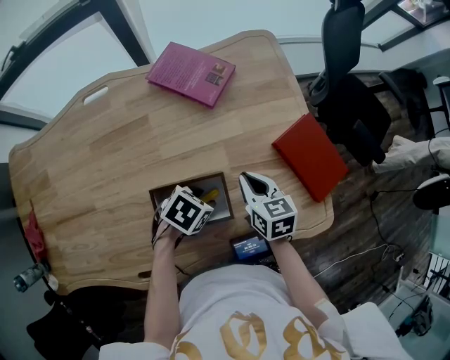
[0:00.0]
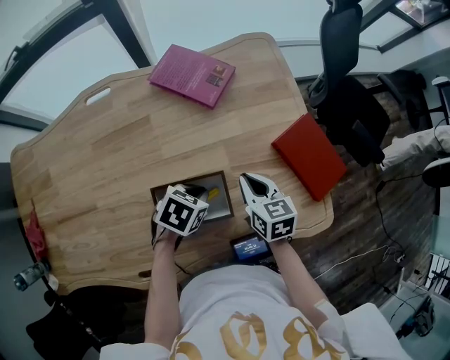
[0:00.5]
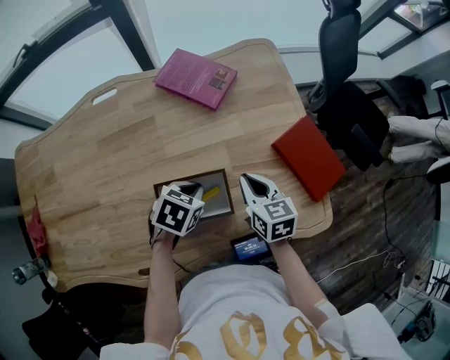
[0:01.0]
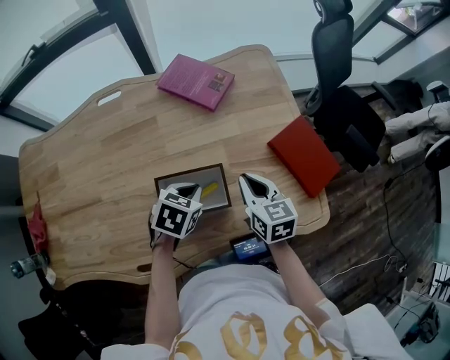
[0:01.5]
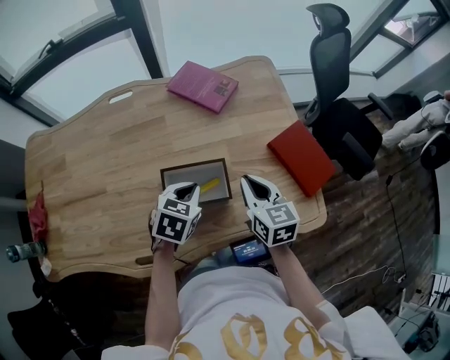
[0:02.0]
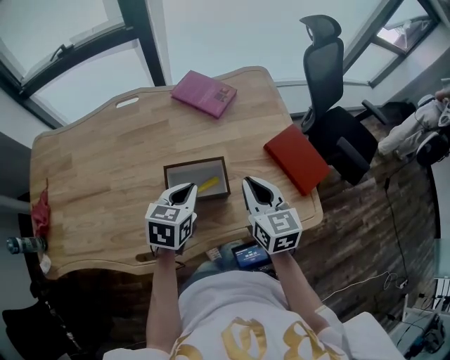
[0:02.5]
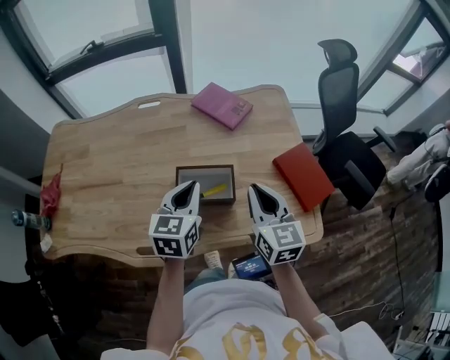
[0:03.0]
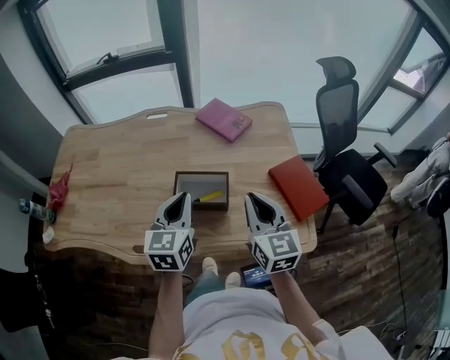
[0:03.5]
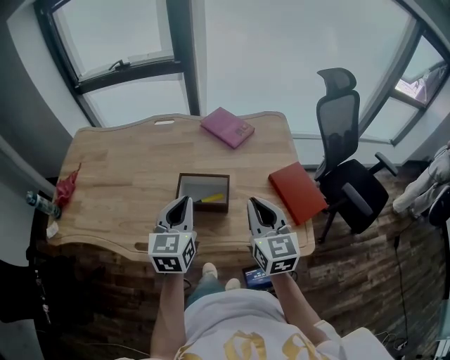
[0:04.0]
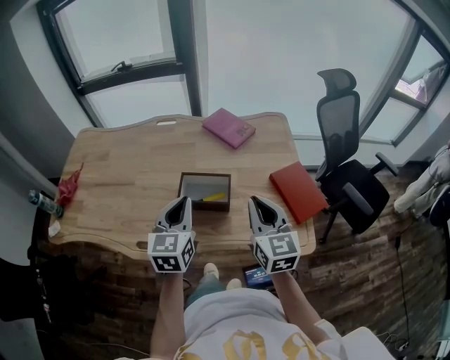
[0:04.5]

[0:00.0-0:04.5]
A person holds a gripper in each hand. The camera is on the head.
0:00.0 to 0:02.0: Both grippers move upward, about 10 cm. The left gripper turns by approximately 30 degrees, and closes up.
0:02.0 to 0:04.5: The two grippers go approximately 20 cm upward and backward. The left gripper tips its fingers upward by some 30 degrees, while the right gripper swivels roughly 20 degrees.

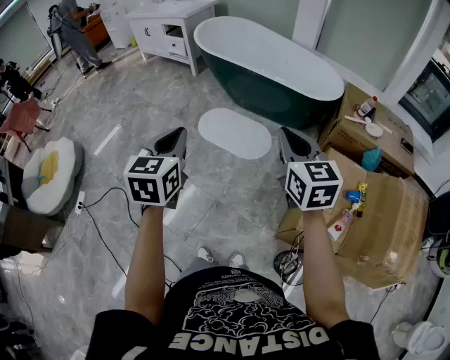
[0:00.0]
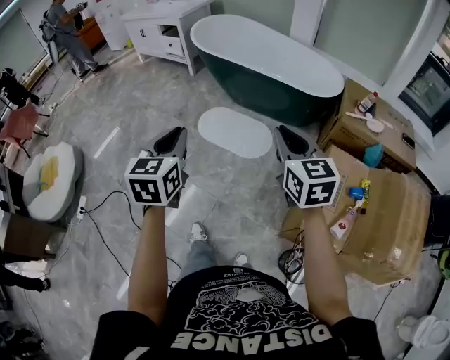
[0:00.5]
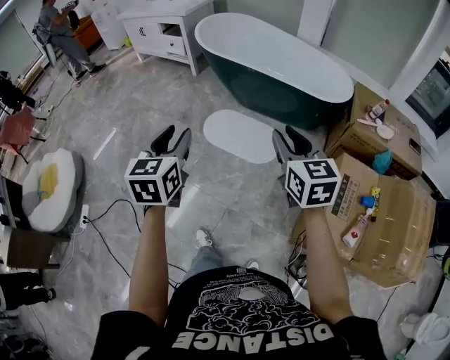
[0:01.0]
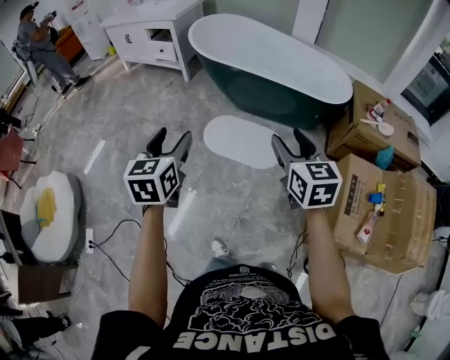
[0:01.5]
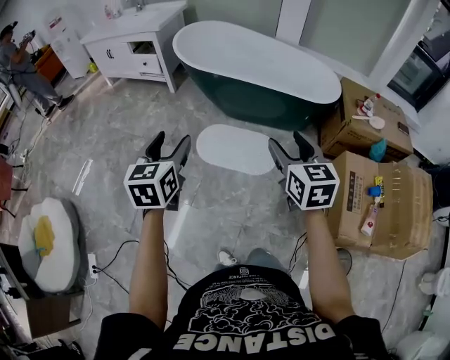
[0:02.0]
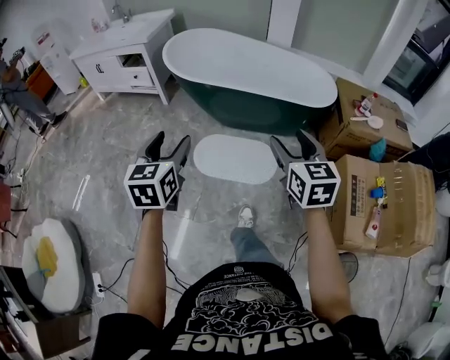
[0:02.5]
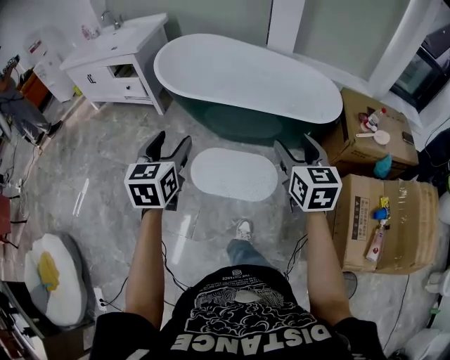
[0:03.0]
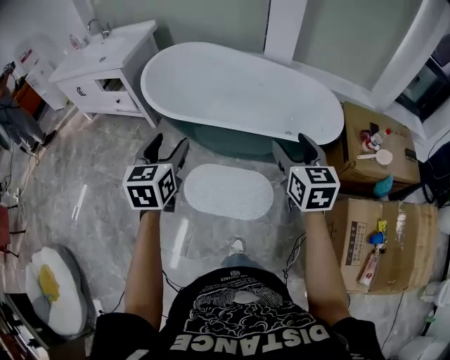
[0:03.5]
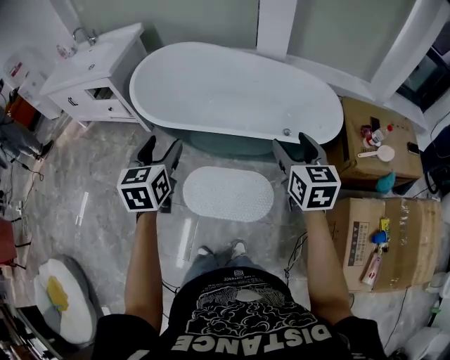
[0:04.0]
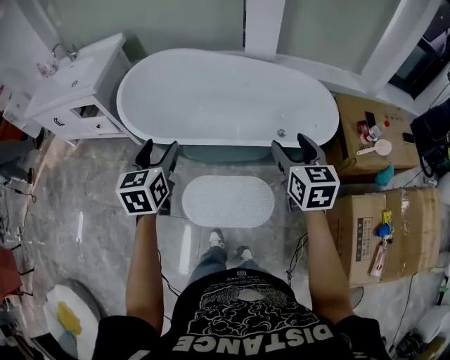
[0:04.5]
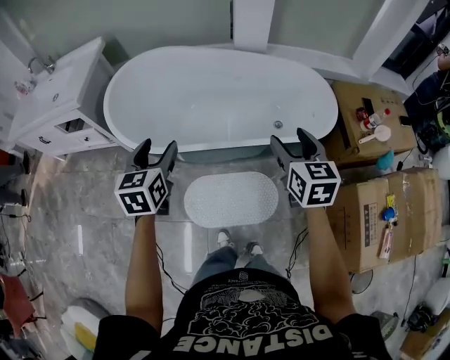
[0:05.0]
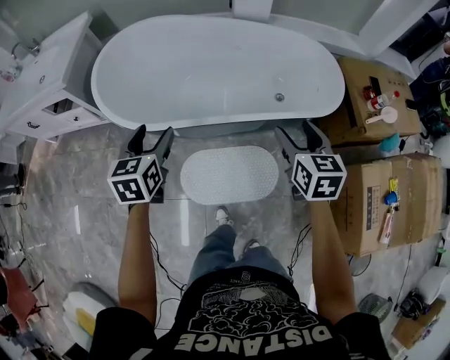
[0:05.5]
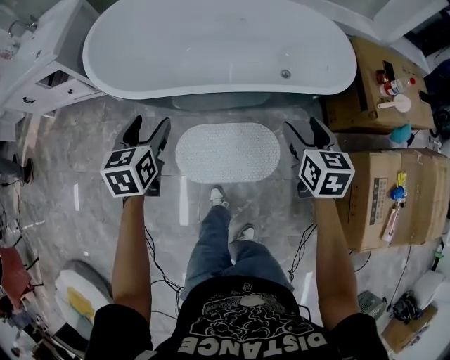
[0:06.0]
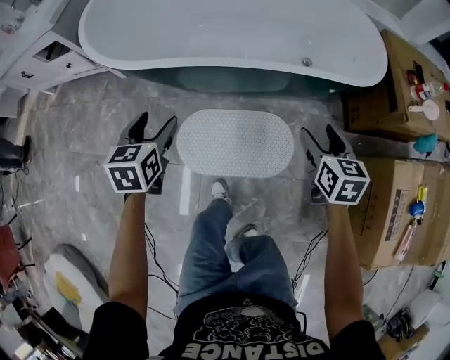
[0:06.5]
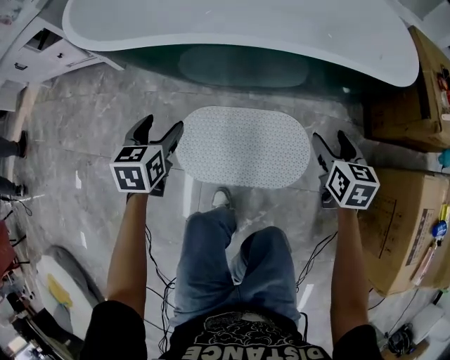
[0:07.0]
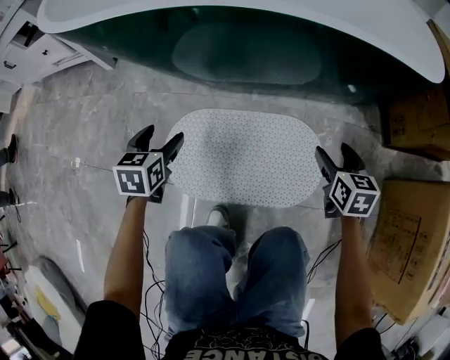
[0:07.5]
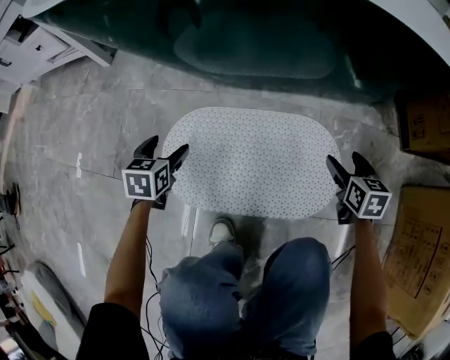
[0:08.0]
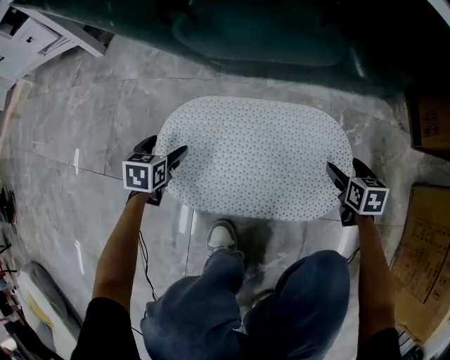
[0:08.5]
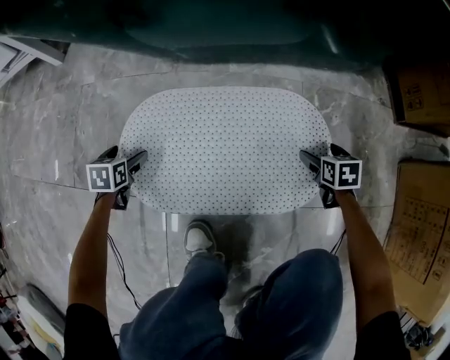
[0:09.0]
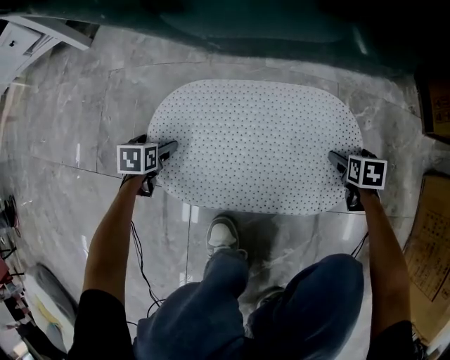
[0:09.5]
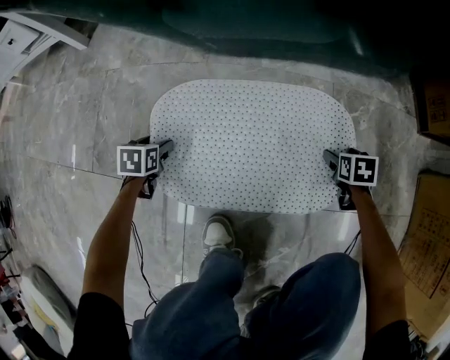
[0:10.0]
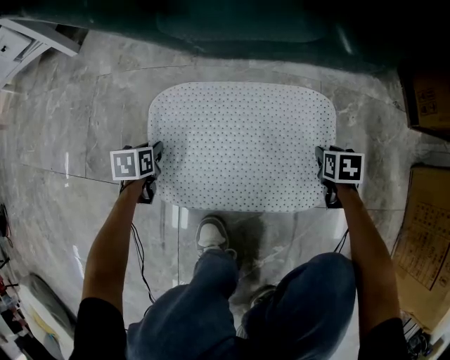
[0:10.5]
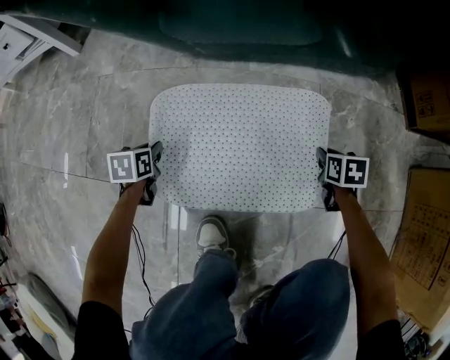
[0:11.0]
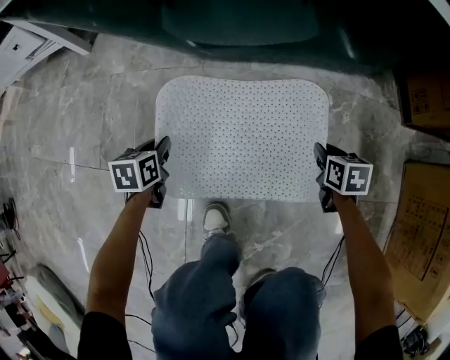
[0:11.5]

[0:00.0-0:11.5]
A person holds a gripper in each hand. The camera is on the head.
0:00.0 to 0:02.0: Both grippers move forward and to the left, approximately 30 cm. The right gripper opens. Meanwhile the left gripper opens its fingers.
0:02.0 to 0:04.0: The two grippers travel together, forward, some 40 cm.
0:04.0 to 0:06.0: The left gripper travels downward and forward by about 20 cm. The right gripper is displaced downward by about 20 cm.
0:06.0 to 0:07.5: Both grippers travel together downward, about 50 cm.
0:07.5 to 0:09.5: The grippers both shift downward by about 30 cm. The left gripper turns by roughly 20 degrees. The right gripper rotates roughly 30 degrees.
0:09.5 to 0:11.5: The left gripper shifts about 15 cm upward and to the right, and closes. Meanwhile the right gripper shifts approximately 15 cm upward and to the left, and closes up.

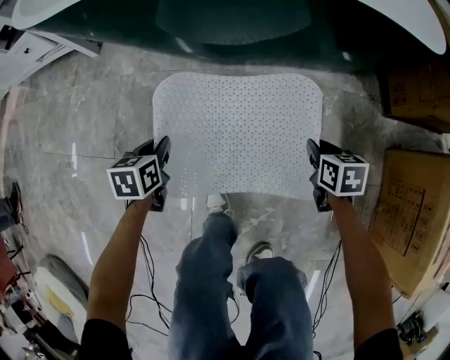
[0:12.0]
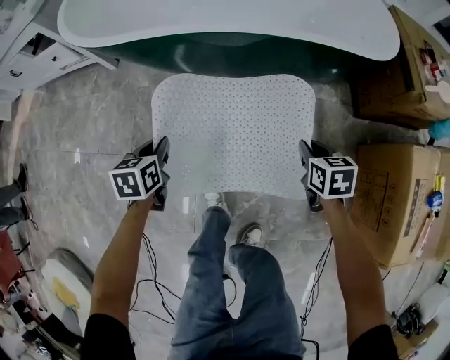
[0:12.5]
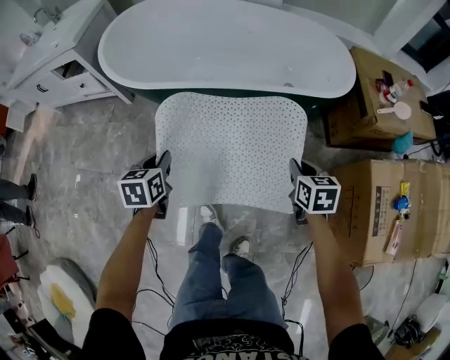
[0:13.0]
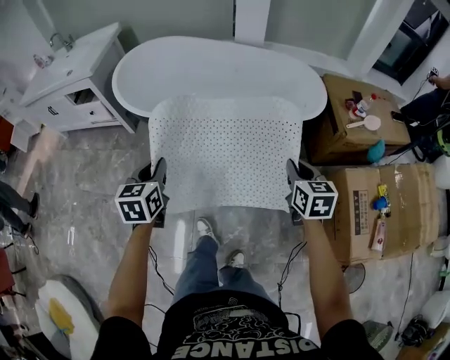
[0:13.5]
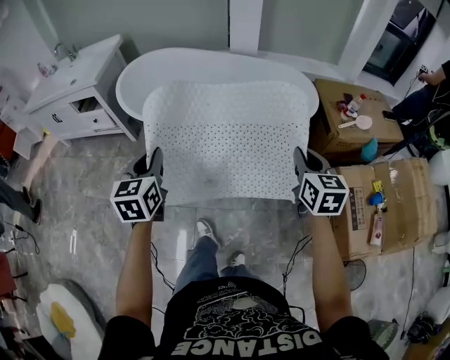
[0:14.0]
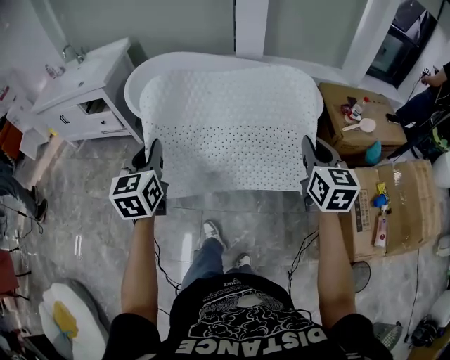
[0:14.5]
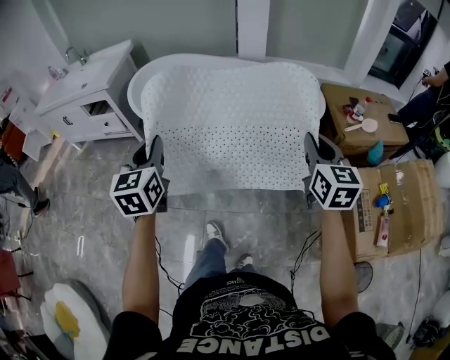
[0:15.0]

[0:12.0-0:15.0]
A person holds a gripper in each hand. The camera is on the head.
0:12.0 to 0:13.5: Both grippers move upward, roughly 60 cm. The left gripper turns by some 30 degrees, while the right gripper turns by about 30 degrees.
0:13.5 to 0:15.0: The two grippers go some 15 cm upward.

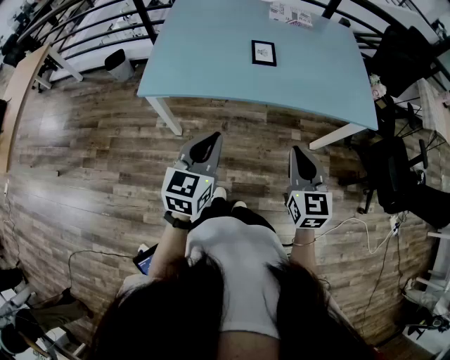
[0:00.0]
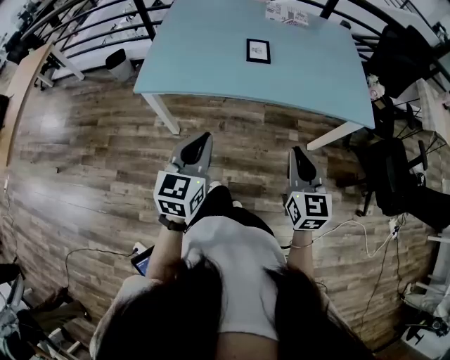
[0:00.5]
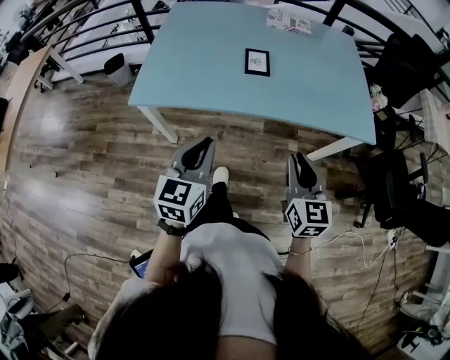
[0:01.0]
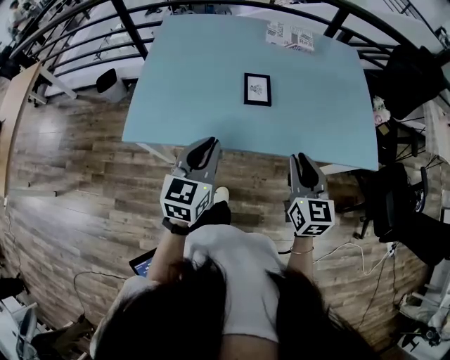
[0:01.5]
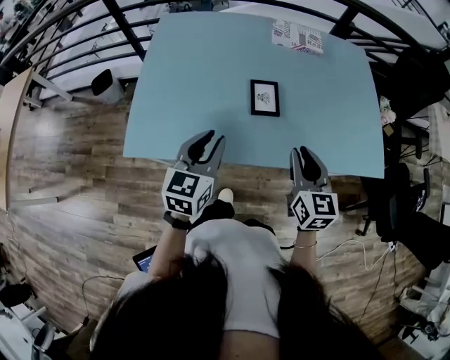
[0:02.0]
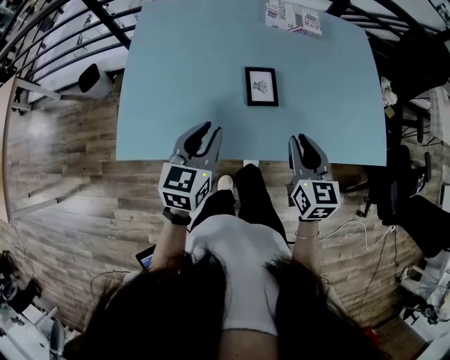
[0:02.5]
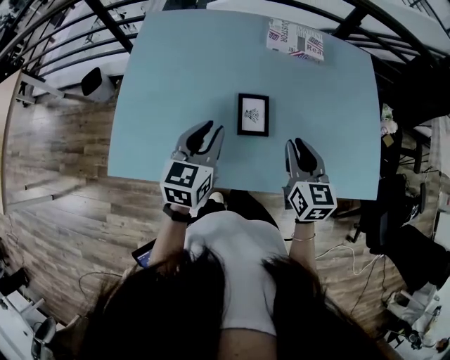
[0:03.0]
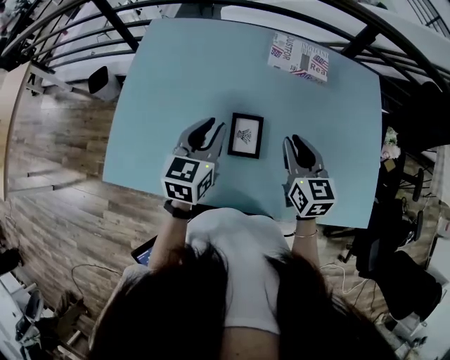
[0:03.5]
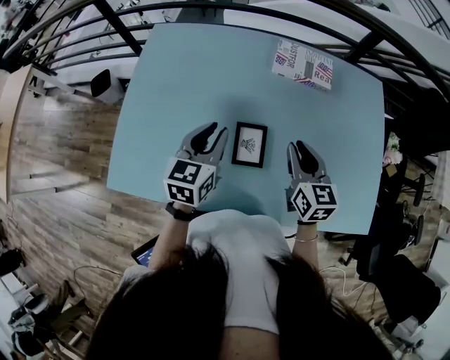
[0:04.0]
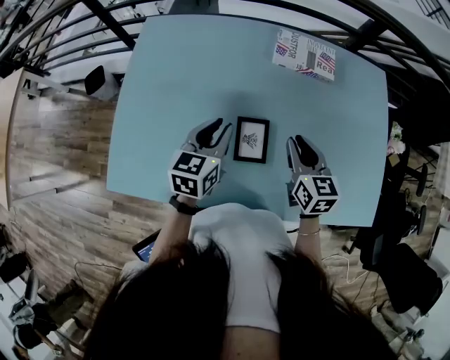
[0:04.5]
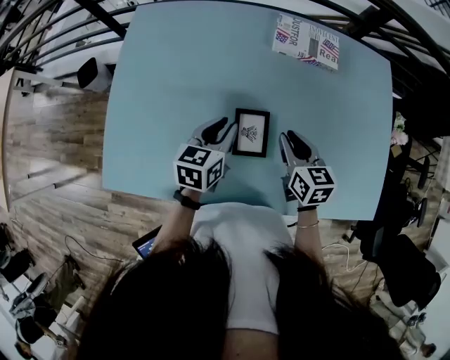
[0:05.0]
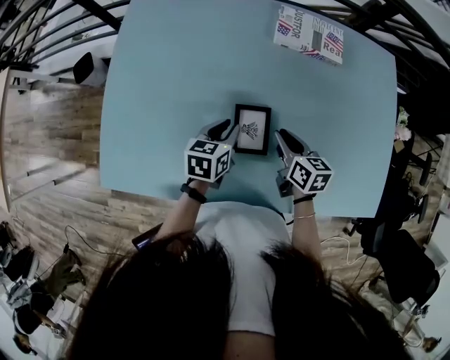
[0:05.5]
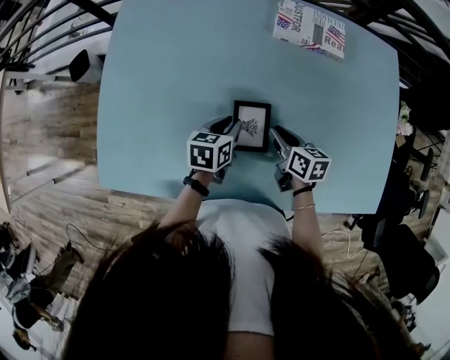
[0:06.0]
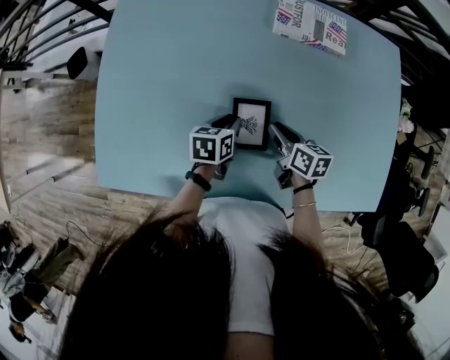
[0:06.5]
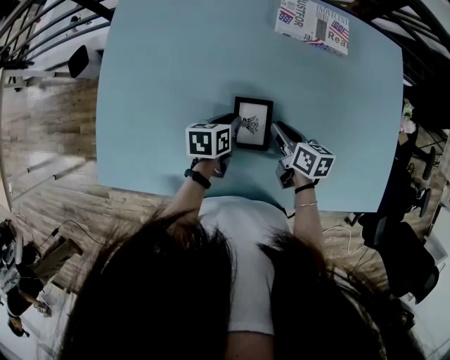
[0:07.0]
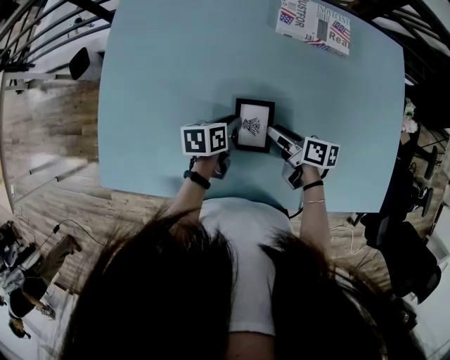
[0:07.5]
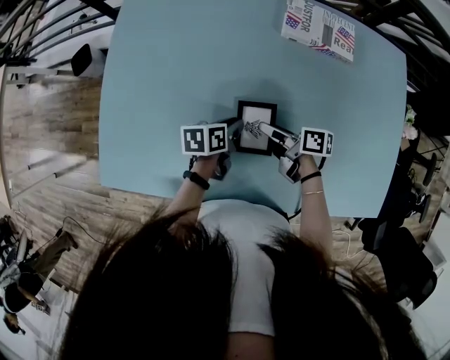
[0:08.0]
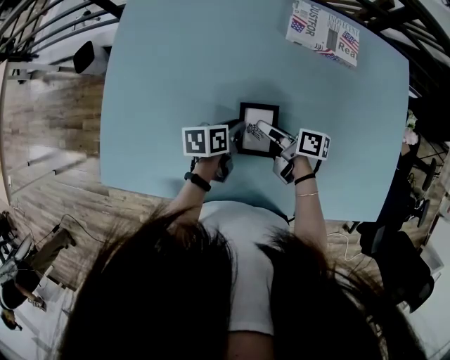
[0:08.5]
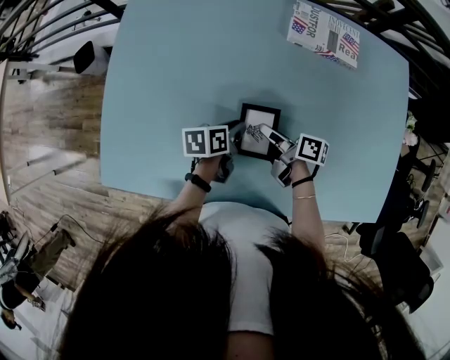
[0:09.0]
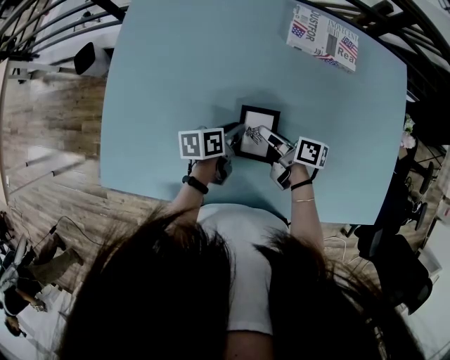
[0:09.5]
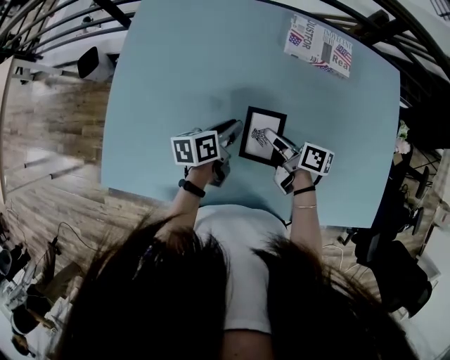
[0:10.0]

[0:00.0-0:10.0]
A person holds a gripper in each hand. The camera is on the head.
0:00.0 to 0:02.0: The grippers both shift forward by some 25 cm.
0:02.0 to 0:04.0: Both grippers move forward, approximately 25 cm.
0:04.0 to 0:06.0: The grippers both shift downward by about 20 cm. The left gripper turns by approximately 30 degrees. Meanwhile the right gripper rotates roughly 40 degrees.
0:06.0 to 0:08.0: The right gripper is displaced to the left by roughly 5 cm, swivels some 40 degrees, and opens its fingers.
0:08.0 to 0:10.0: The left gripper goes some 5 cm upward. Meanwhile the right gripper closes.
